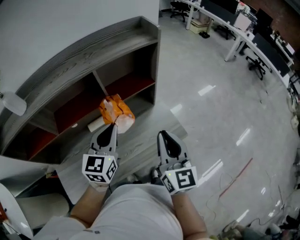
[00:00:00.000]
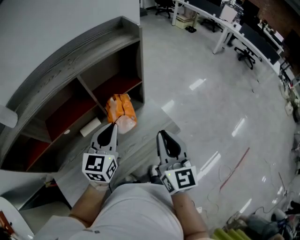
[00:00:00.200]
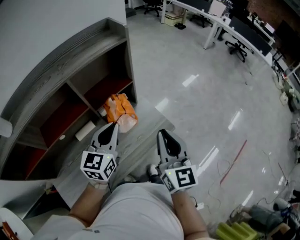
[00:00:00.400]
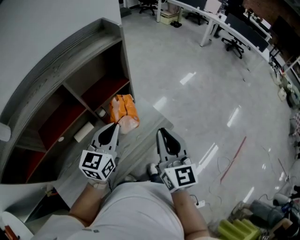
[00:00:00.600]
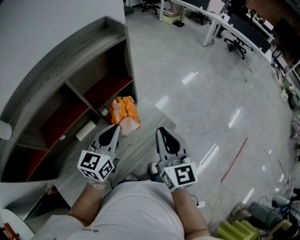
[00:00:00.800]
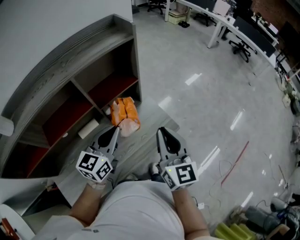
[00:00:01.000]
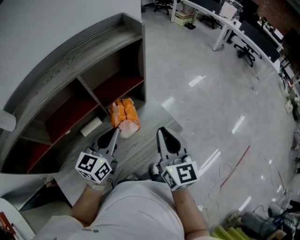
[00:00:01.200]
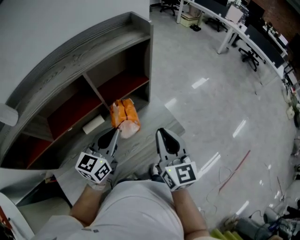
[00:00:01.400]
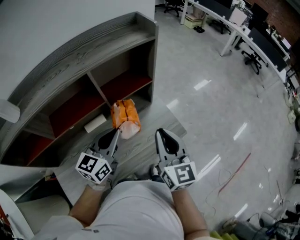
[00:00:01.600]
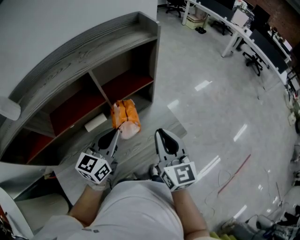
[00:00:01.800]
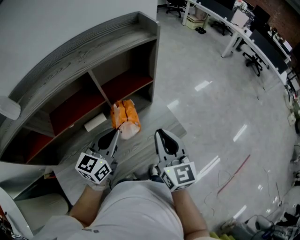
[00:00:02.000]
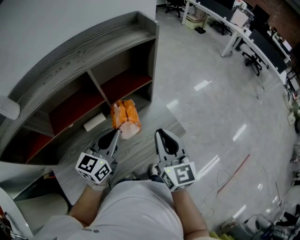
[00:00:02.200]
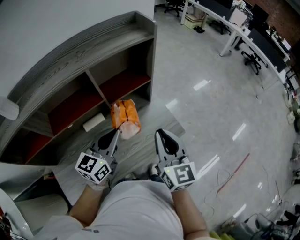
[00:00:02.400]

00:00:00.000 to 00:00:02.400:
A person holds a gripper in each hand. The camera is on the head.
00:00:00.000 to 00:00:01.200: The left gripper rotates approximately 20 degrees.
00:00:01.200 to 00:00:02.400: The grippers make only small movements.

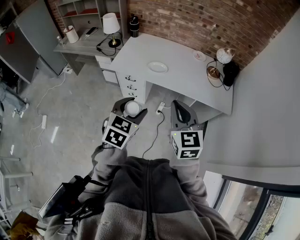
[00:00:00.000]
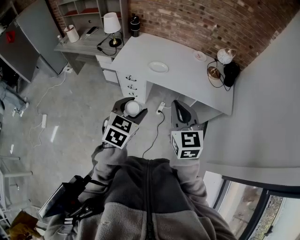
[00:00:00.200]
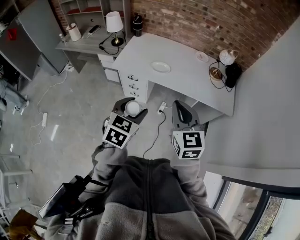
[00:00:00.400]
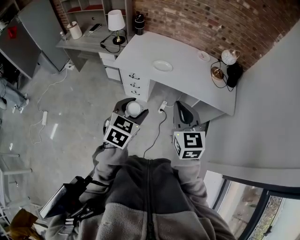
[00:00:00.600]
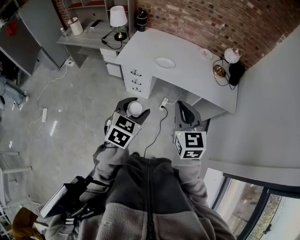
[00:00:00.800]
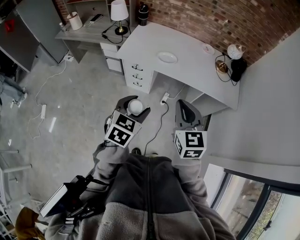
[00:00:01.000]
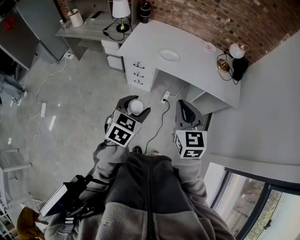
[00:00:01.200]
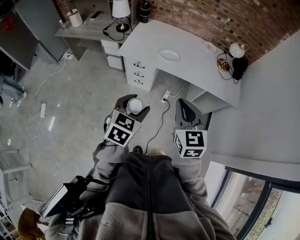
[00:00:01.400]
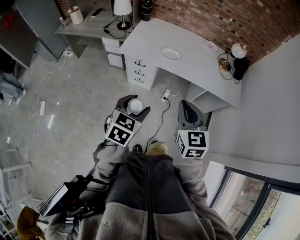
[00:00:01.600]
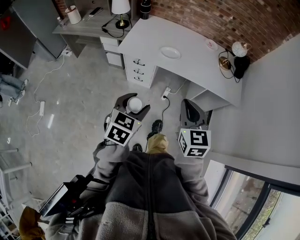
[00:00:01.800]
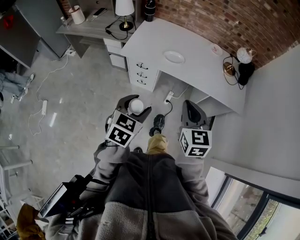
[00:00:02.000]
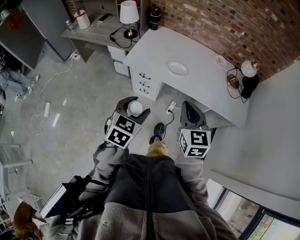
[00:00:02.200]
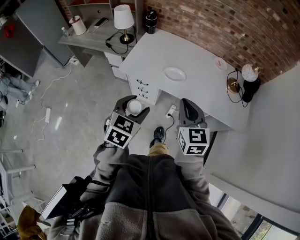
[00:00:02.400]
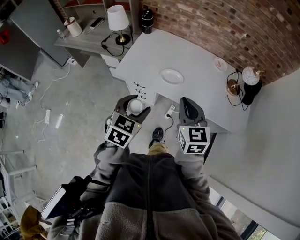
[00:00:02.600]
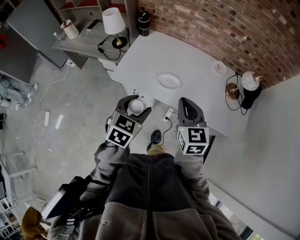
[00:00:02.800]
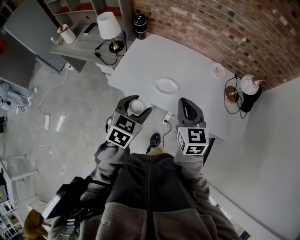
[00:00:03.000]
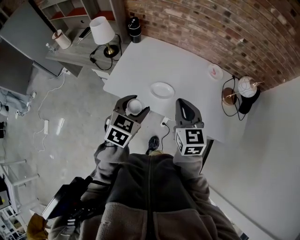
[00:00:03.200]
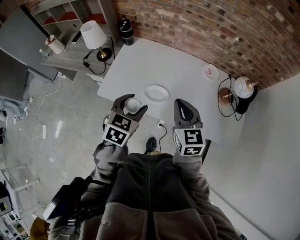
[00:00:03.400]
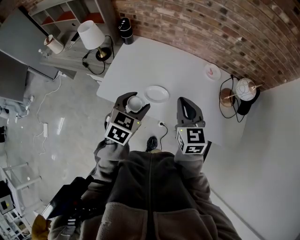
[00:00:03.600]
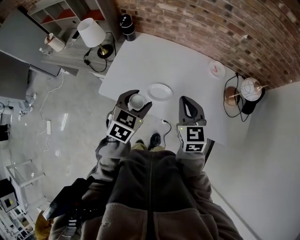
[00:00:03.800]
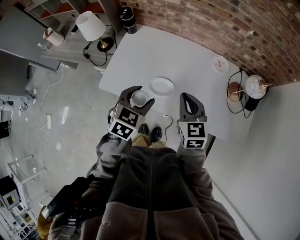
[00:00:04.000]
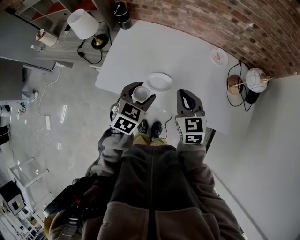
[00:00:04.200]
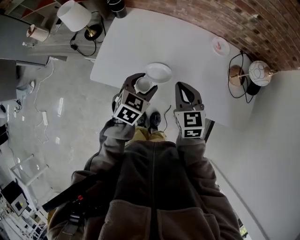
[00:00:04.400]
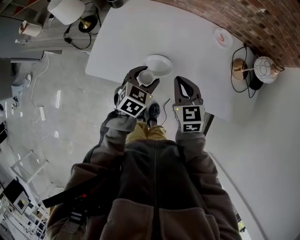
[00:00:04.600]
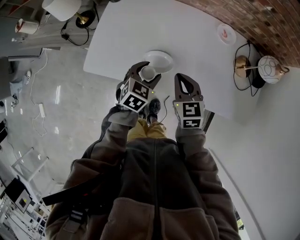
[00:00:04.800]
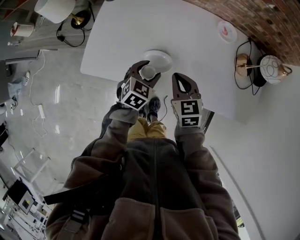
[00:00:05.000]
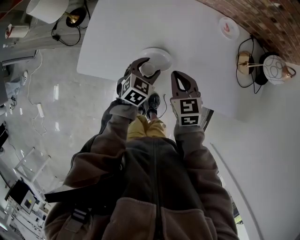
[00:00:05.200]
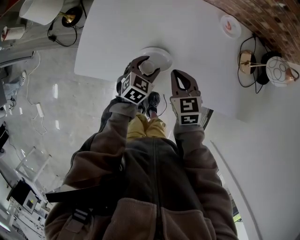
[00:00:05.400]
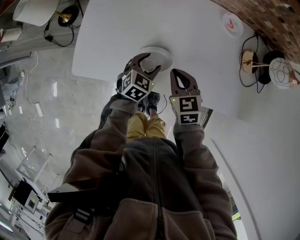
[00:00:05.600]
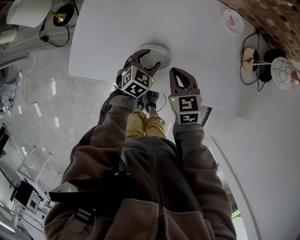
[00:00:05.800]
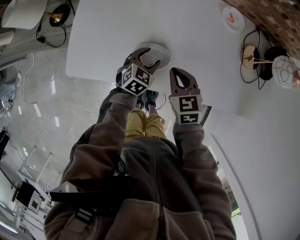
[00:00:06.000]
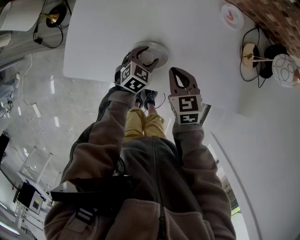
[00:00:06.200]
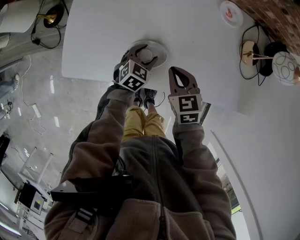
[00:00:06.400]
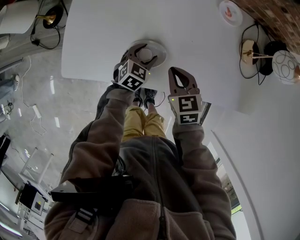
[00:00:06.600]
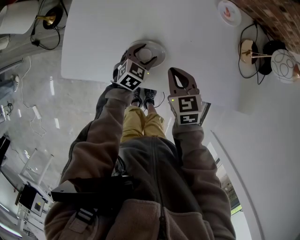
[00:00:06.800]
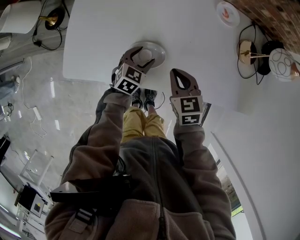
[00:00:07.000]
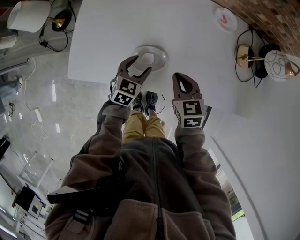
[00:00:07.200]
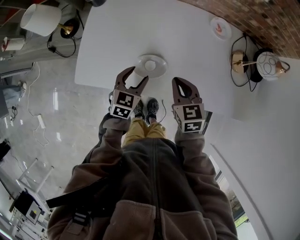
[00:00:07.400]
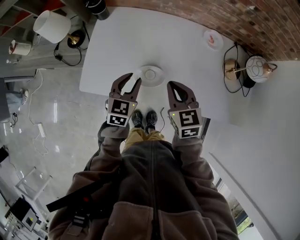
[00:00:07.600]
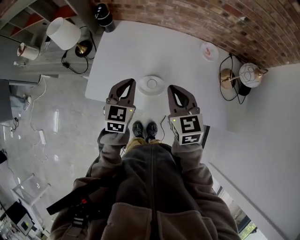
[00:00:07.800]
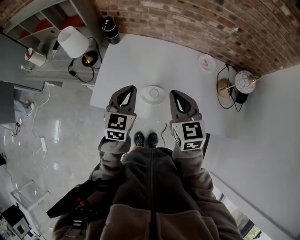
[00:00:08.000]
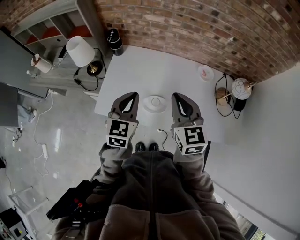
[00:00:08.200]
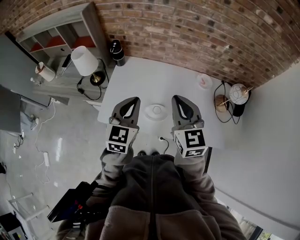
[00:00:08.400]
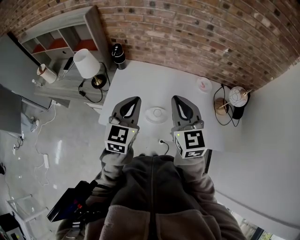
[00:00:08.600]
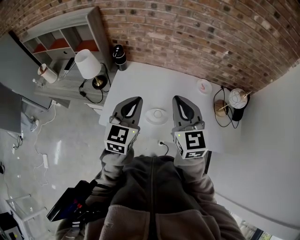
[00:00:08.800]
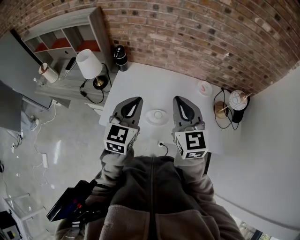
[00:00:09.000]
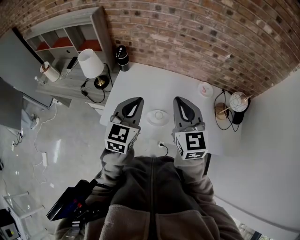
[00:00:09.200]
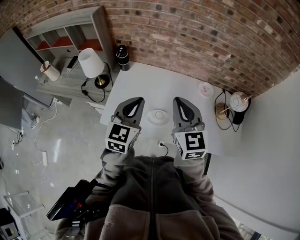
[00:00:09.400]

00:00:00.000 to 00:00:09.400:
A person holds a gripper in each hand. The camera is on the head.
00:00:00.000 to 00:00:01.600: The right gripper moves downward and to the left, about 10 cm, while the left gripper heads to the left and downward, covering some 10 cm.
00:00:01.600 to 00:00:03.200: The two grippers go some 35 cm forward.
00:00:03.200 to 00:00:04.800: The two grippers go about 20 cm downward and forward.
00:00:04.800 to 00:00:06.200: The left gripper heads downward and forward, covering approximately 15 cm. The right gripper is displaced downward by some 10 cm.
00:00:06.200 to 00:00:07.800: The grippers both shift upward by approximately 25 cm. The left gripper swivels about 30 degrees, and closes its fingers.
00:00:07.800 to 00:00:09.400: Both grippers move upward, approximately 15 cm. The right gripper swivels about 20 degrees.

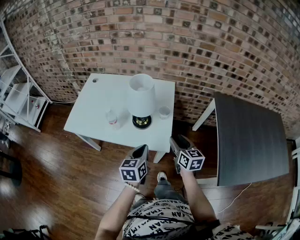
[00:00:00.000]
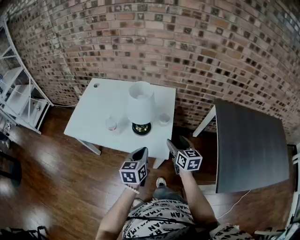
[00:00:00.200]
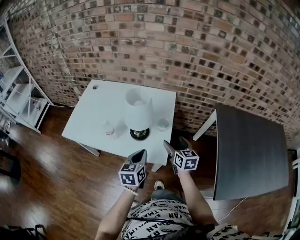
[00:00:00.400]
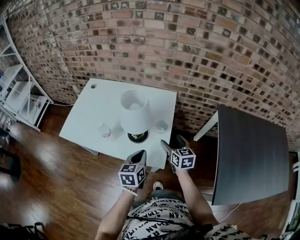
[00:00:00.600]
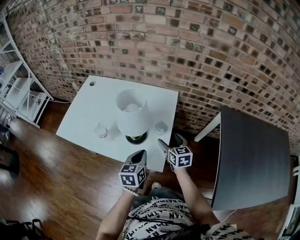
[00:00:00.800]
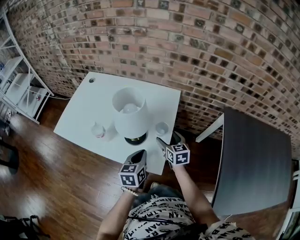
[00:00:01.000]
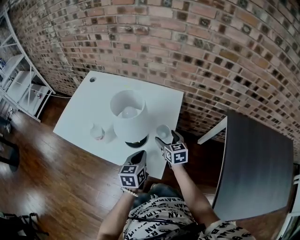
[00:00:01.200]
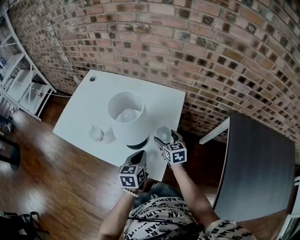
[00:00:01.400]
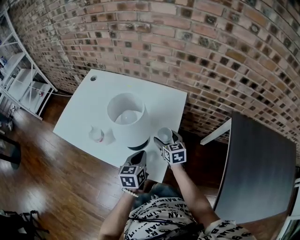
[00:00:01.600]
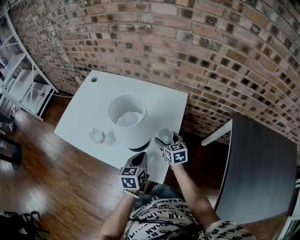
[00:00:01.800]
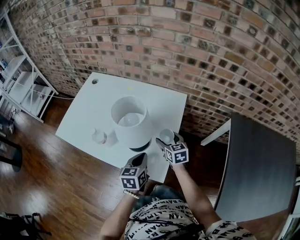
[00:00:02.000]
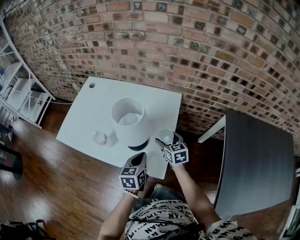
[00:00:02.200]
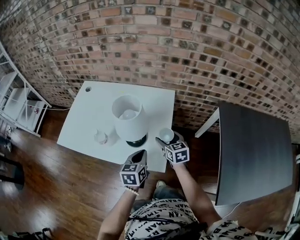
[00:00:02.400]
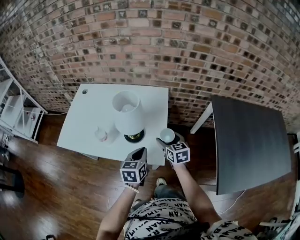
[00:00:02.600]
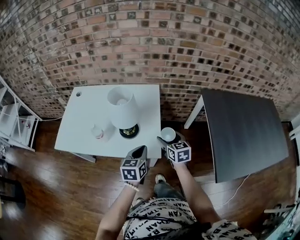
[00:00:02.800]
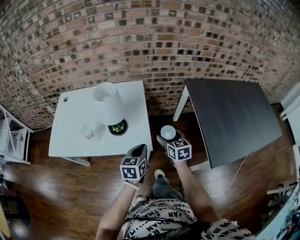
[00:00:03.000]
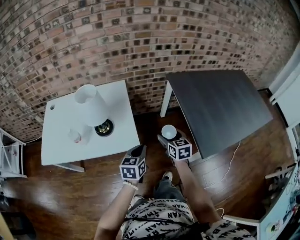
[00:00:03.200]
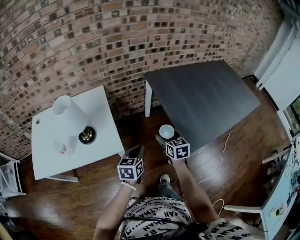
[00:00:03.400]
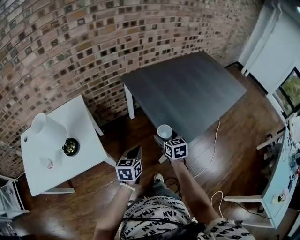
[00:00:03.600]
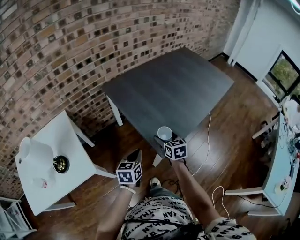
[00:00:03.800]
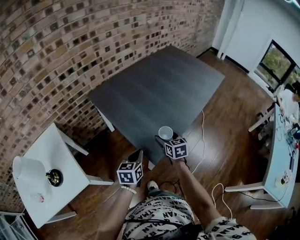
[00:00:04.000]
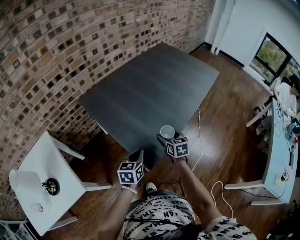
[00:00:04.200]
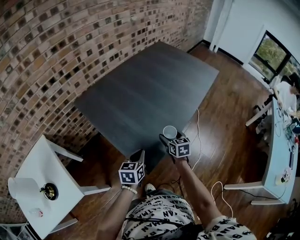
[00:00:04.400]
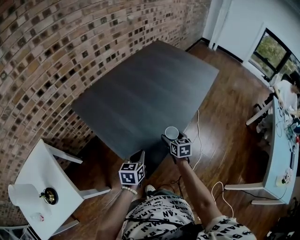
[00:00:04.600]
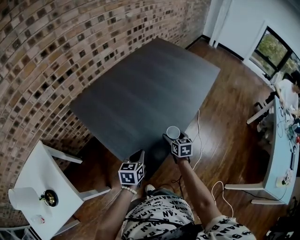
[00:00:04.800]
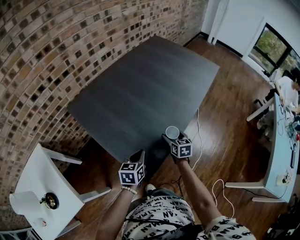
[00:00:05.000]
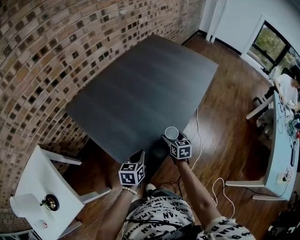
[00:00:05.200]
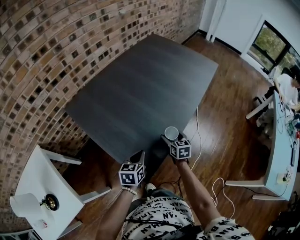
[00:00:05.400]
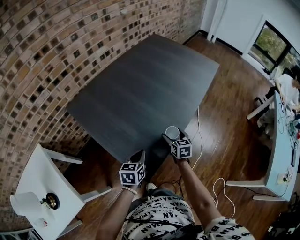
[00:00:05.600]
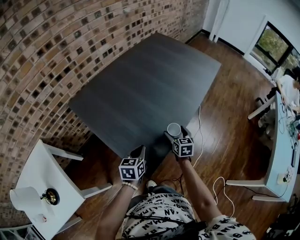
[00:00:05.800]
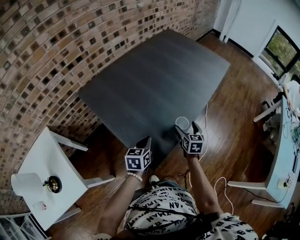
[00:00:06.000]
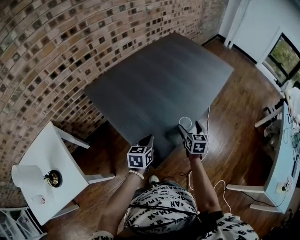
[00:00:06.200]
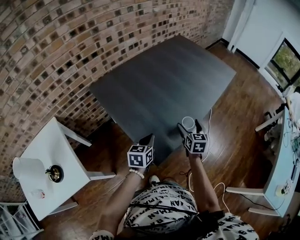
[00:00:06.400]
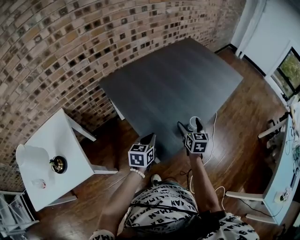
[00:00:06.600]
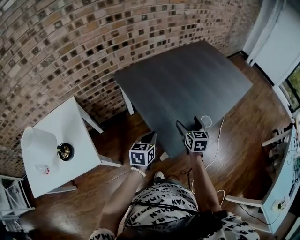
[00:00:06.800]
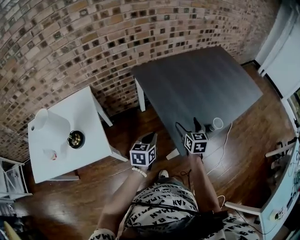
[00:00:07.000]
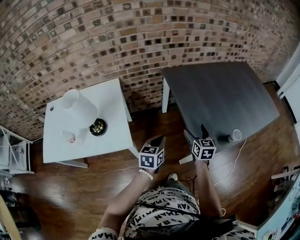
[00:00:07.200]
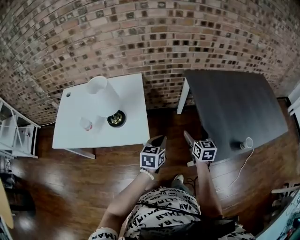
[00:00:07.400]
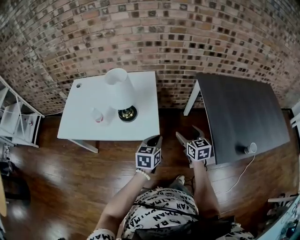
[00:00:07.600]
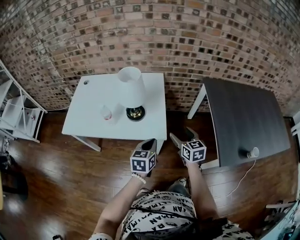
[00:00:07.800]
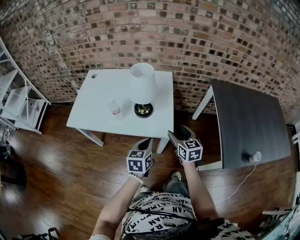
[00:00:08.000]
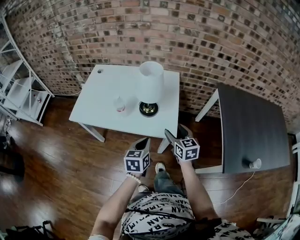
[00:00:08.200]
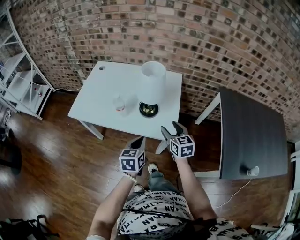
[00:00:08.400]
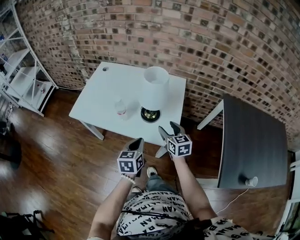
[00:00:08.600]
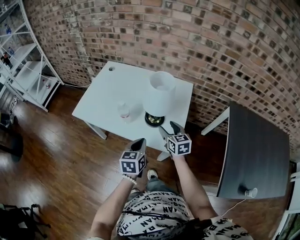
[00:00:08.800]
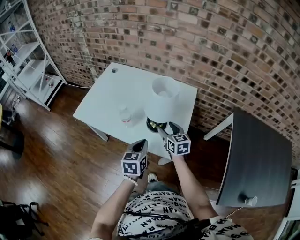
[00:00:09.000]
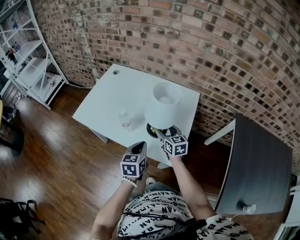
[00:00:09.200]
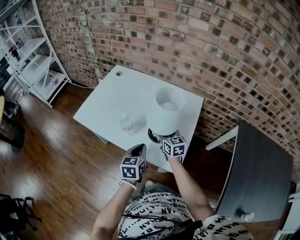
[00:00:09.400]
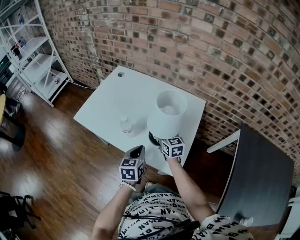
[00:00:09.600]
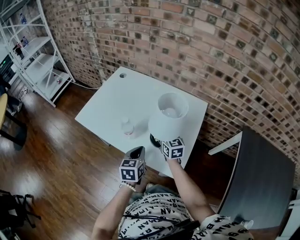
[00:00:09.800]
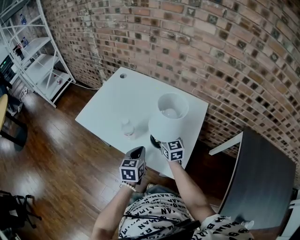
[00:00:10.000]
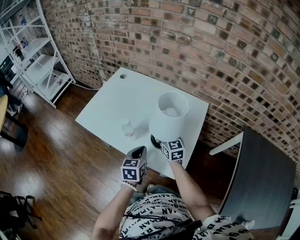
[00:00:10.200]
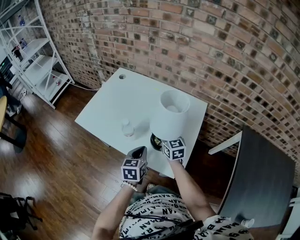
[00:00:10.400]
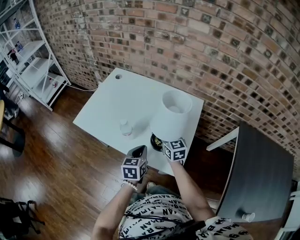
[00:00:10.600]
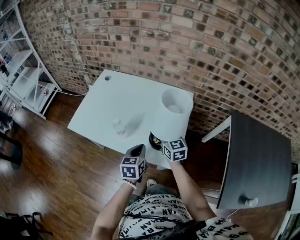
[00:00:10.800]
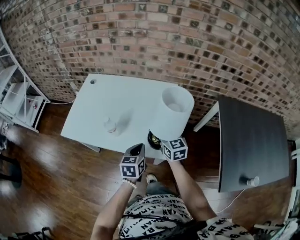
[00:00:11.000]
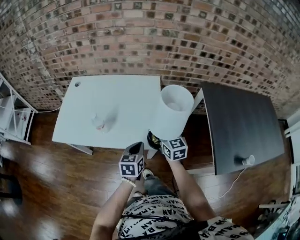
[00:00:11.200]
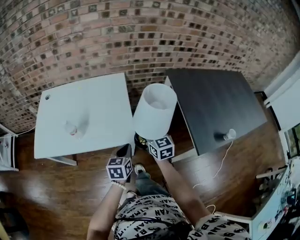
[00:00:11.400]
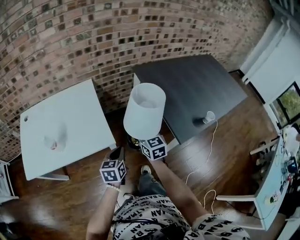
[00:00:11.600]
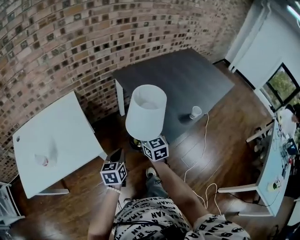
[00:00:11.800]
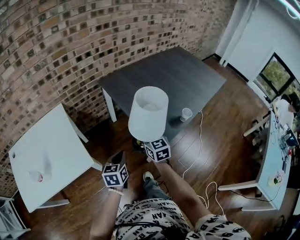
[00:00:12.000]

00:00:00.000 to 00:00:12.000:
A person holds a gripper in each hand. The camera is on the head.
00:00:00.000 to 00:00:01.600: The right gripper goes some 25 cm forward and downward, swivels some 20 degrees, and opens its fingers. Meanwhile the left gripper shifts about 15 cm forward and downward.
00:00:01.600 to 00:00:03.000: The right gripper moves approximately 25 cm, and rotates about 30 degrees, while the left gripper shifts by approximately 15 cm, and changes its angle by approximately 30 degrees.
00:00:03.000 to 00:00:04.400: Both grippers are carried roughly 50 cm. The left gripper turns by approximately 40 degrees. Meanwhile the right gripper swivels about 50 degrees.
00:00:04.400 to 00:00:06.000: The right gripper heads to the right, covering roughly 5 cm. The left gripper shifts by some 5 cm.
00:00:06.000 to 00:00:07.600: The two grippers travel together, roughly 50 cm. The left gripper changes its angle by approximately 40 degrees, while the right gripper turns by about 60 degrees.
00:00:07.600 to 00:00:09.000: The left gripper shifts by approximately 20 cm, and changes its angle by approximately 30 degrees; the right gripper changes place by roughly 30 cm, and rotates about 30 degrees.
00:00:09.000 to 00:00:10.400: Both grippers move forward, about 10 cm. The right gripper closes up.
00:00:10.400 to 00:00:12.000: Both grippers are carried some 50 cm. The left gripper rotates roughly 60 degrees. Meanwhile the right gripper rotates roughly 60 degrees.
